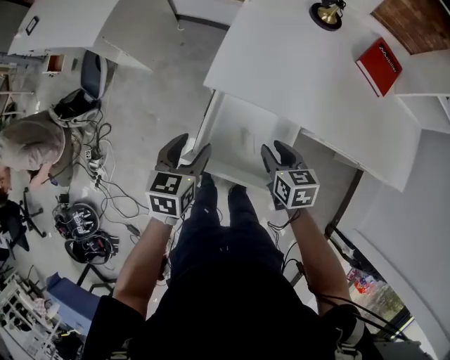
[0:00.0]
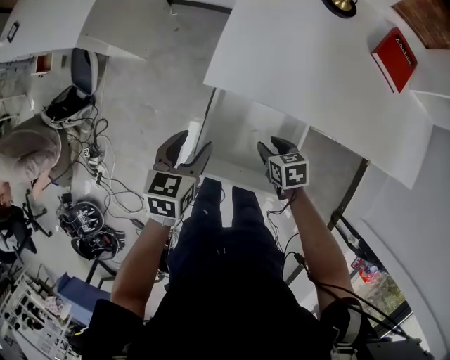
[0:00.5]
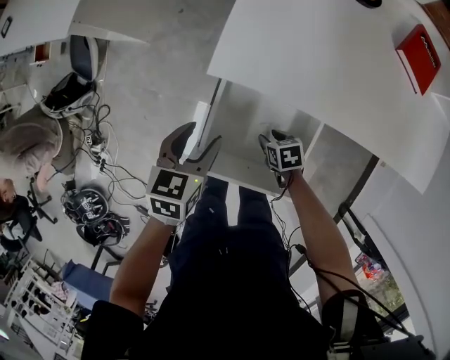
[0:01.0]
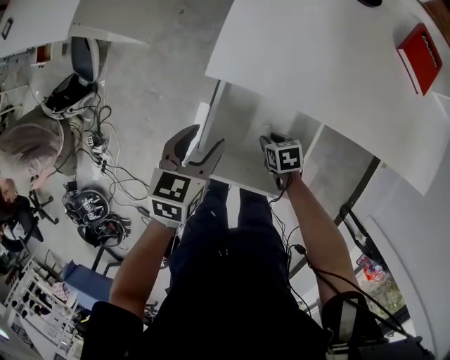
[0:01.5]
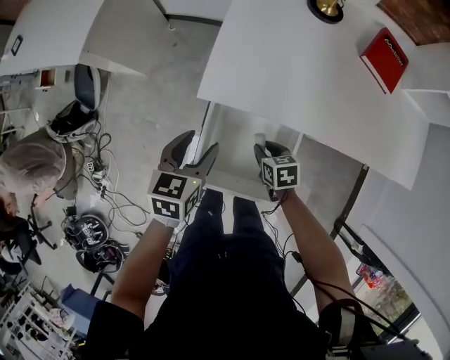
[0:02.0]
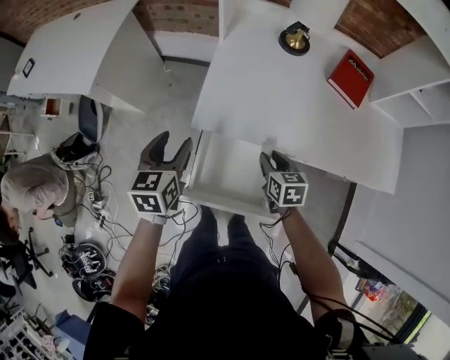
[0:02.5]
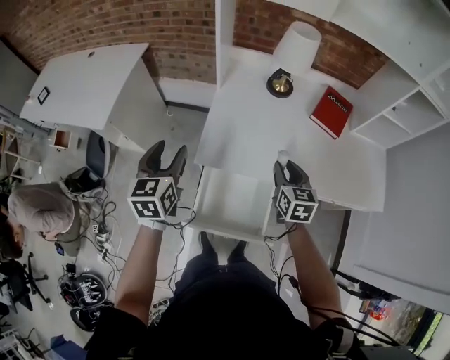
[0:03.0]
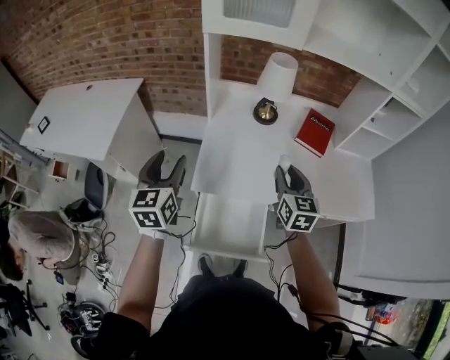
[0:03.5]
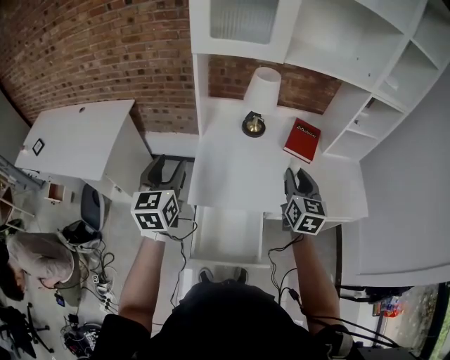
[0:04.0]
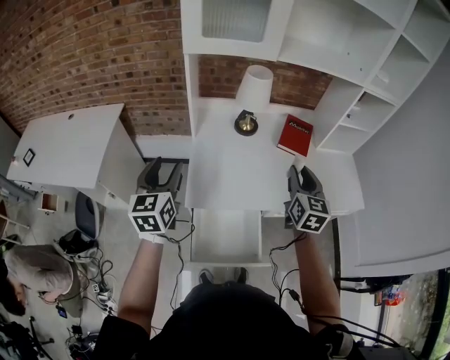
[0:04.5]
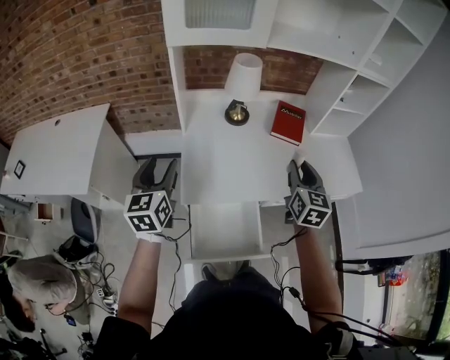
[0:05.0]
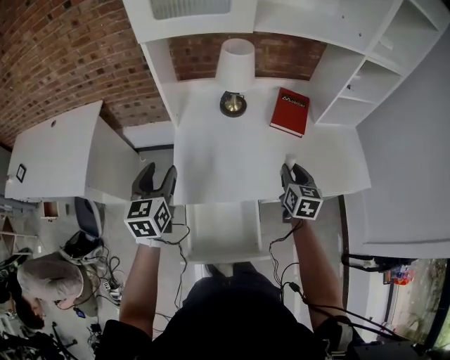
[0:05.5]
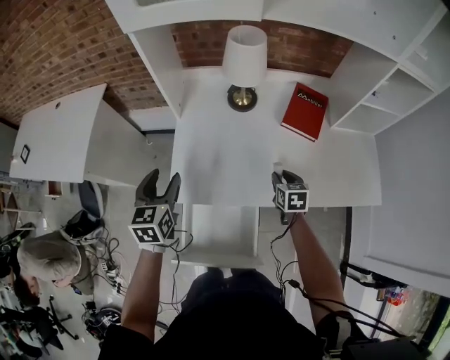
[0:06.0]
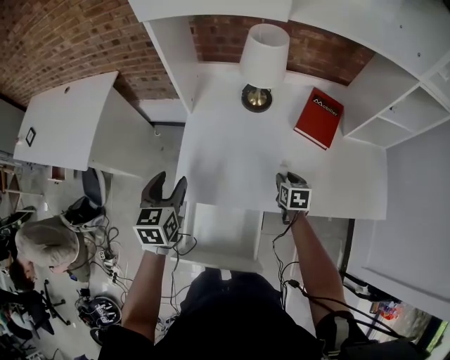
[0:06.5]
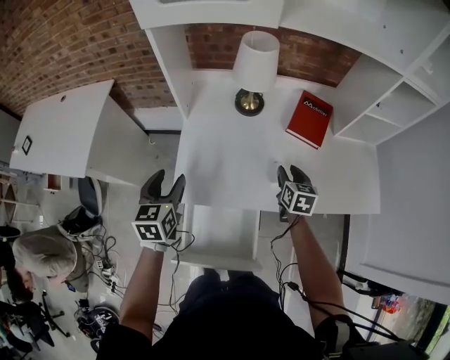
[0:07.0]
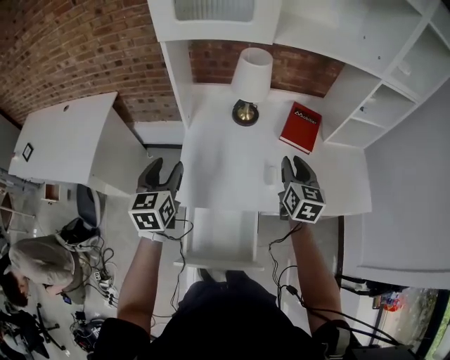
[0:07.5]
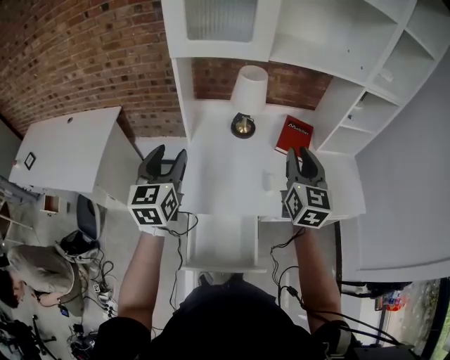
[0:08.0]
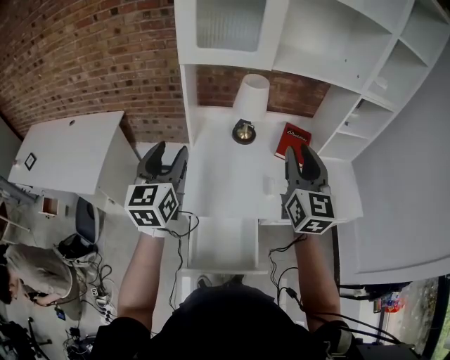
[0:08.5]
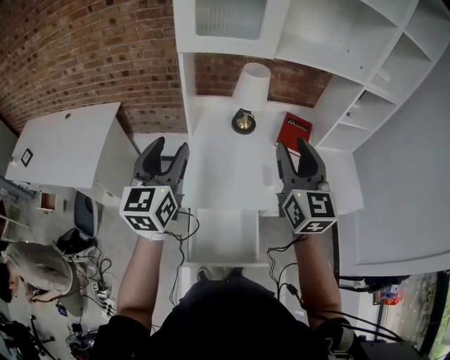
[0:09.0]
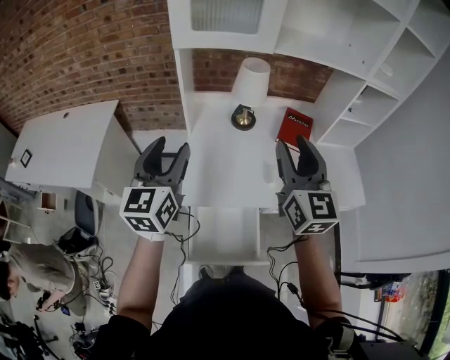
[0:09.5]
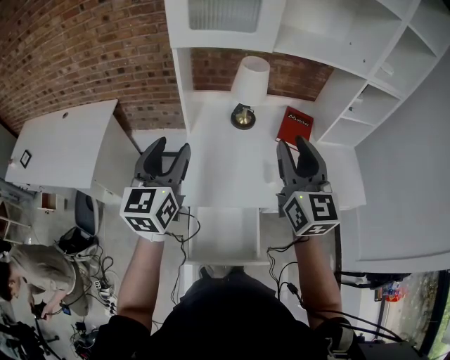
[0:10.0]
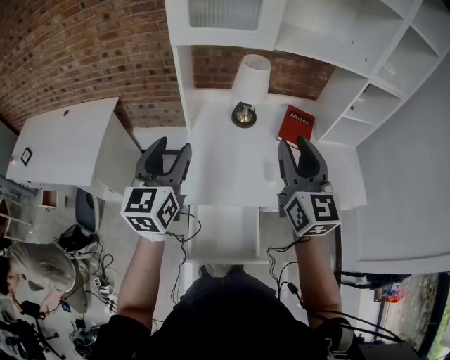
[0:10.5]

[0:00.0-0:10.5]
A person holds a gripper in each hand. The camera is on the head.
0:00.0 to 0:02.0: The right gripper shifts roughly 15 cm downward. Meanwhile the left gripper goes approximately 5 cm forward, and goes downward and returns, roughly 10 cm each way.
0:02.0 to 0:04.0: The grippers both shift upward by about 40 cm. The left gripper points its fingers some 30 degrees further upward, while the right gripper tips its fingers upward by about 40 degrees.
0:04.0 to 0:06.5: The right gripper travels downward by about 30 cm, and angles its fingers downward, by some 40 degrees, while the left gripper moves downward, roughly 20 cm, and turns by roughly 20 degrees.
0:06.5 to 0:08.5: The left gripper goes roughly 25 cm upward, and swivels some 30 degrees; the right gripper is displaced upward by roughly 50 cm, and tips its fingers upward by roughly 50 degrees.
0:08.5 to 0:10.5: The grippers move only a little.

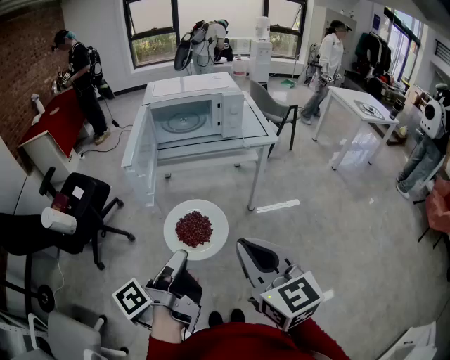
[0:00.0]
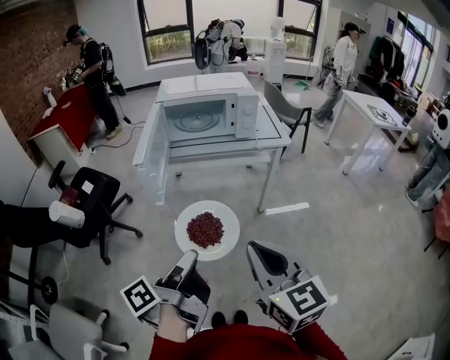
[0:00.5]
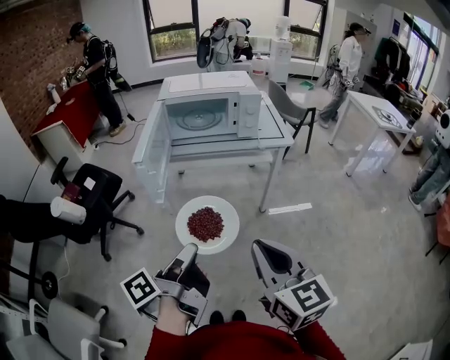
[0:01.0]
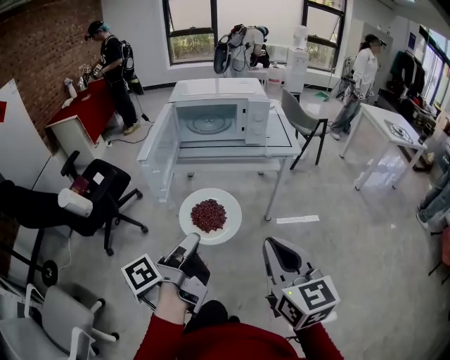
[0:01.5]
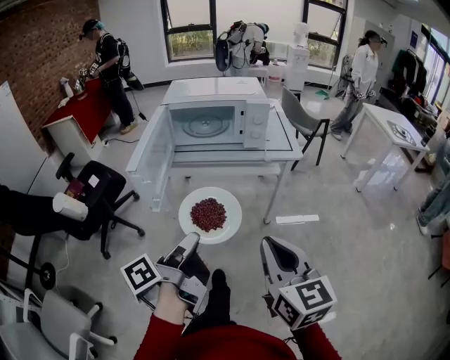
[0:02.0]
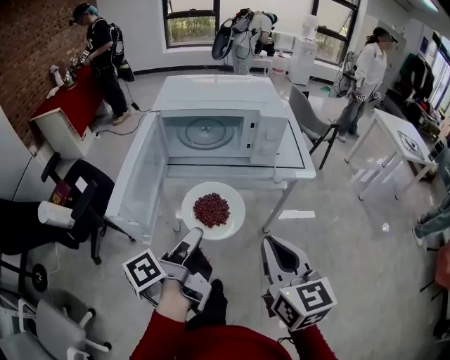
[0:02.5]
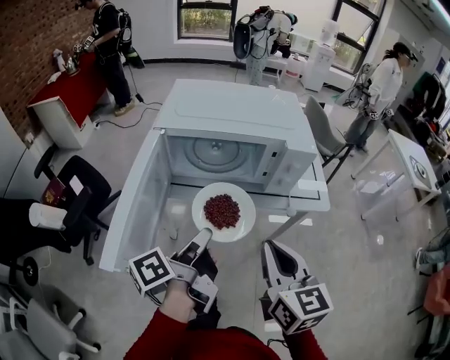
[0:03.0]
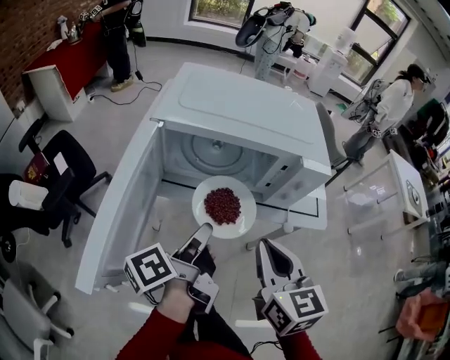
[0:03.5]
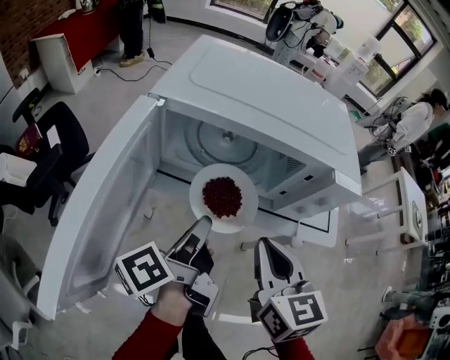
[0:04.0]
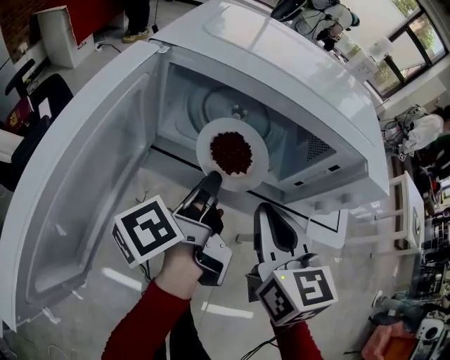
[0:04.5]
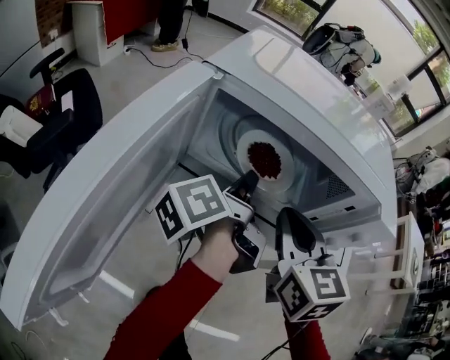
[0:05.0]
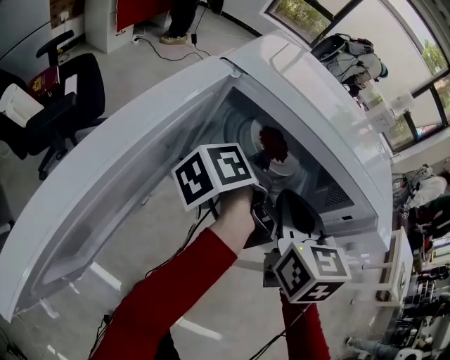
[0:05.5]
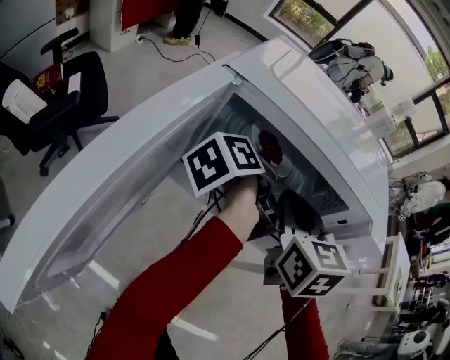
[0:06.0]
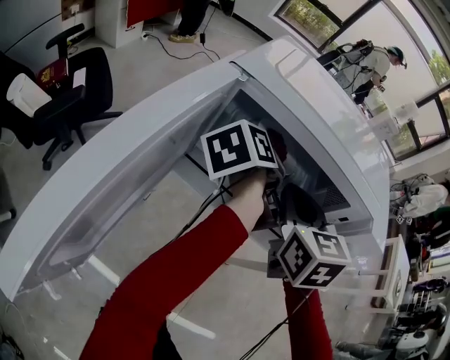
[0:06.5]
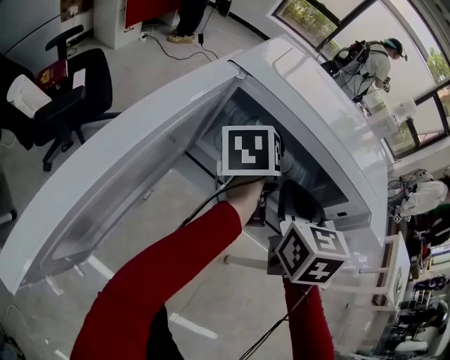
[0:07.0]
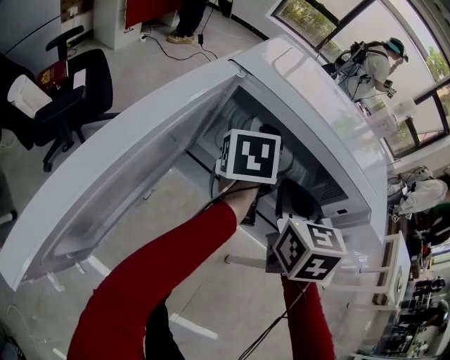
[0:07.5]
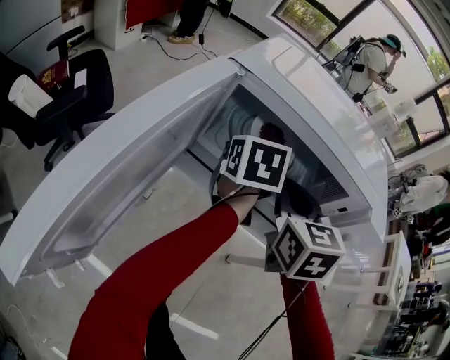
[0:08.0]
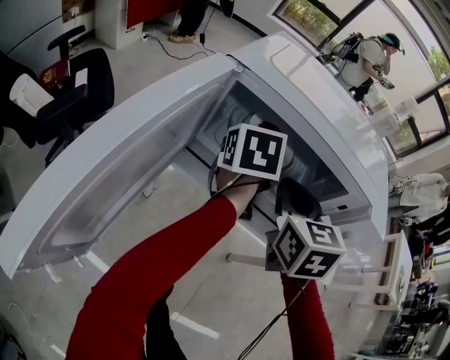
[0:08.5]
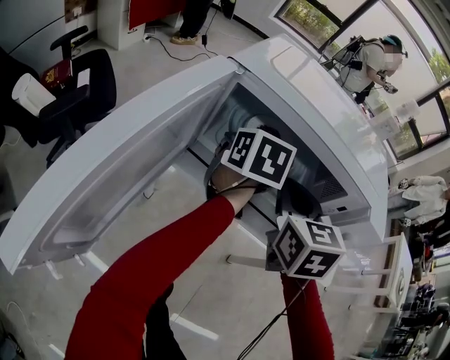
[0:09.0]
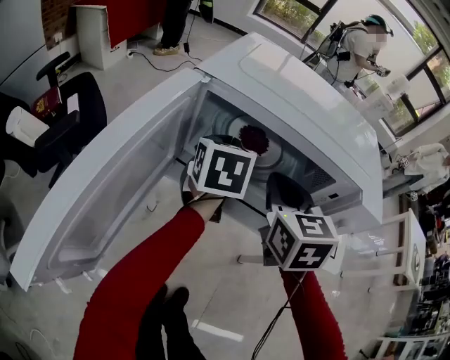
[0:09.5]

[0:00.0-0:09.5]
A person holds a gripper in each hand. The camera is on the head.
0:00.0 to 0:02.0: The left gripper travels forward by approximately 10 cm. Meanwhile the right gripper travels to the right and forward by some 10 cm.
0:02.0 to 0:04.0: Both grippers move forward, about 35 cm.
0:04.0 to 0:05.5: The two grippers go about 15 cm forward.
0:05.5 to 0:07.5: The left gripper twists about 40 degrees clockwise, seen from behind.
0:07.5 to 0:09.5: The left gripper swivels approximately 20 degrees.

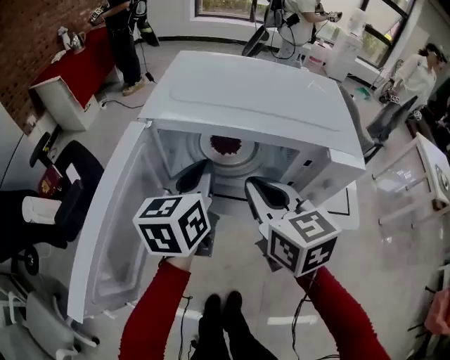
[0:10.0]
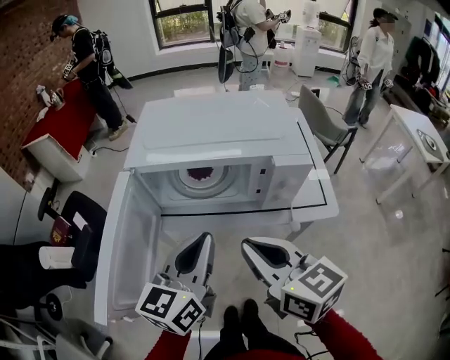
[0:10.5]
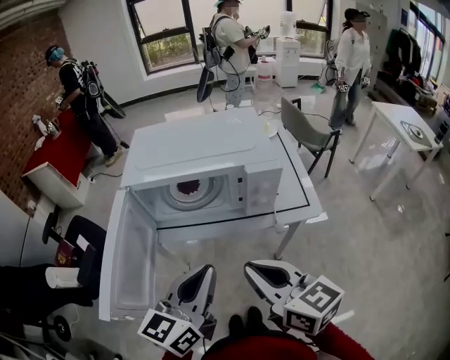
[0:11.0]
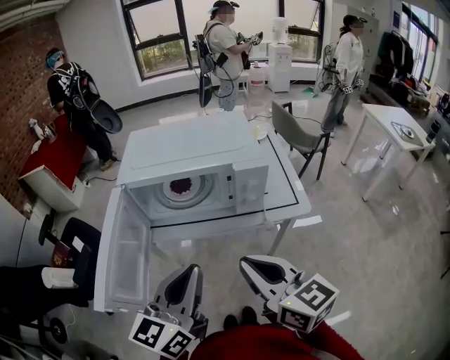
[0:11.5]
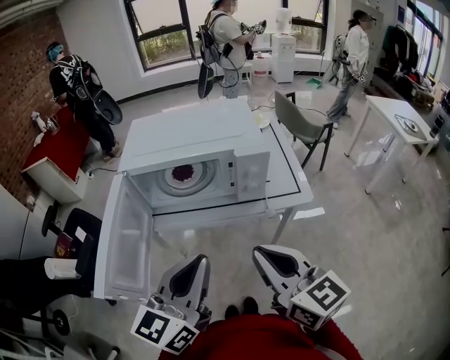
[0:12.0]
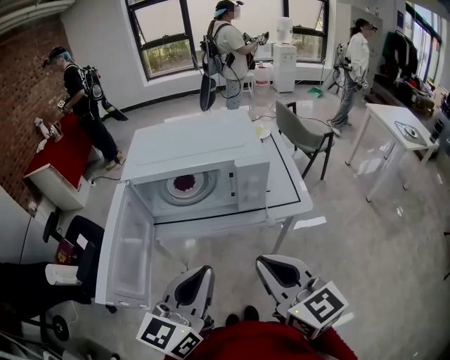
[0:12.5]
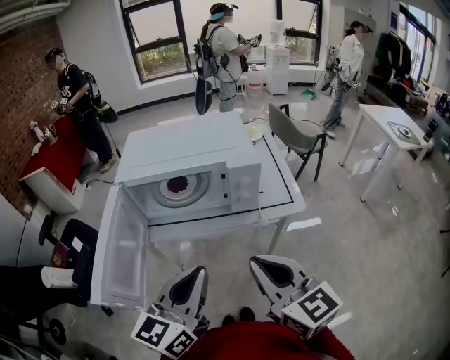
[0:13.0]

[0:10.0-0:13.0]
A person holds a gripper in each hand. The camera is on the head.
0:10.0 to 0:11.5: The left gripper travels backward by roughly 25 cm, and swivels some 20 degrees; the right gripper travels backward and to the right by some 20 cm, and swivels about 20 degrees.
0:11.5 to 0:13.0: The grippers stay close to where they were, moving slightly.

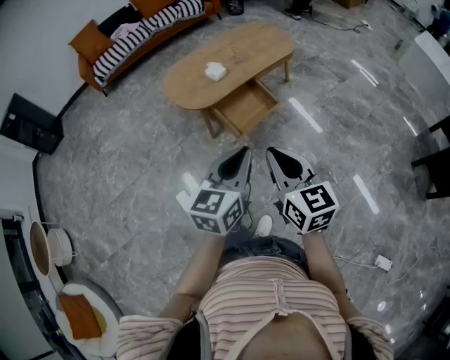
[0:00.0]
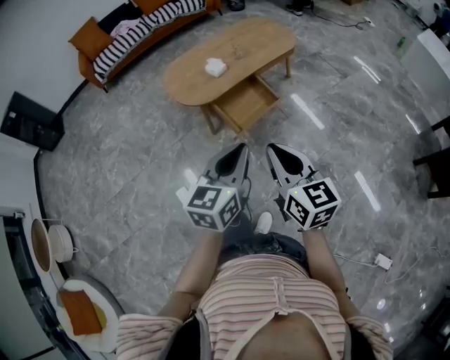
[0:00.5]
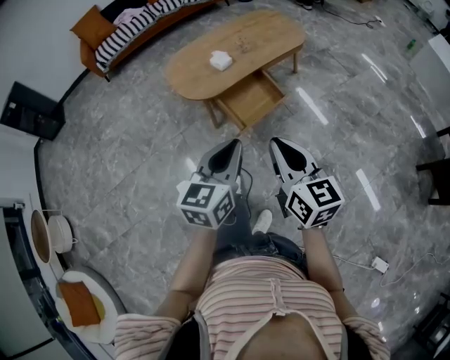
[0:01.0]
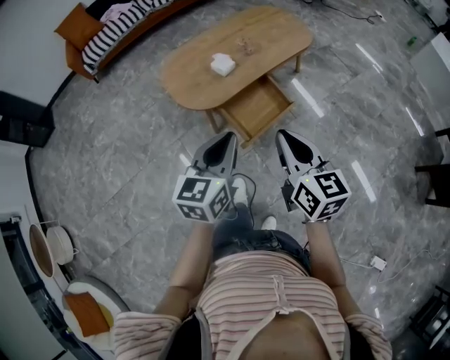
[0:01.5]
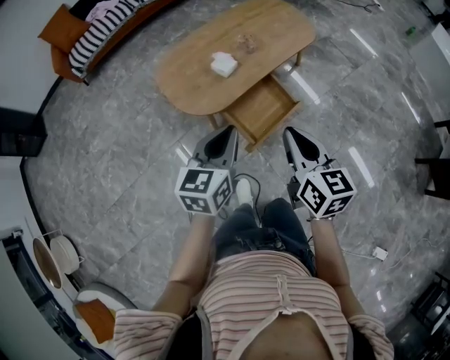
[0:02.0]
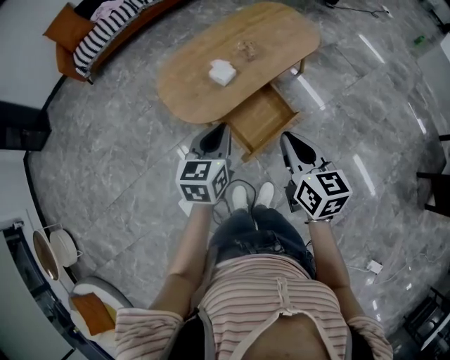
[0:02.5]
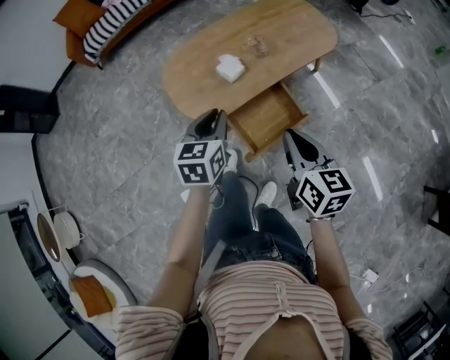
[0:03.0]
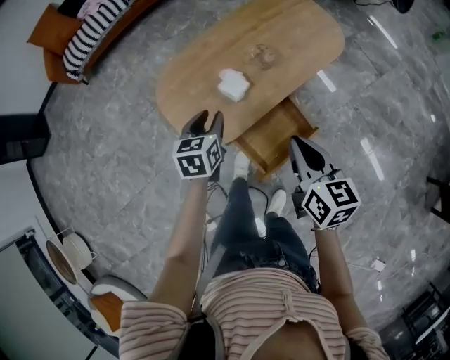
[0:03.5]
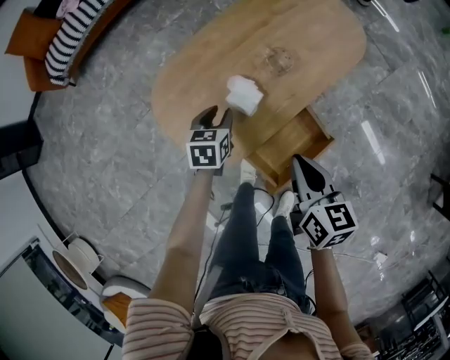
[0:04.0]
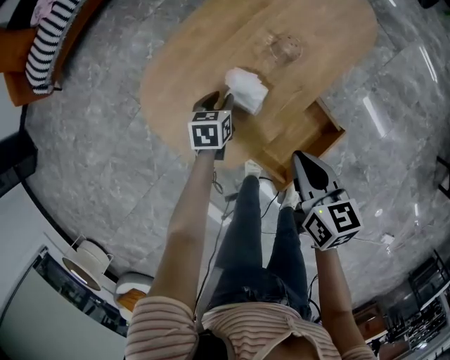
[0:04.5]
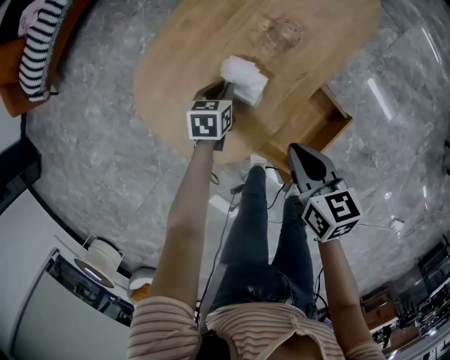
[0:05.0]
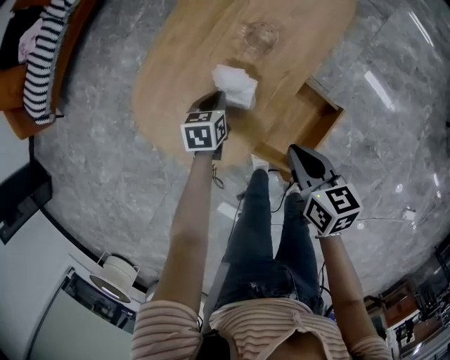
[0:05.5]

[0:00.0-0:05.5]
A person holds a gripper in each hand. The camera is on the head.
0:00.0 to 0:02.0: The left gripper moves forward and to the left, about 30 cm; the right gripper heads forward, covering roughly 25 cm.
0:02.0 to 0:03.5: The left gripper moves forward and downward, about 30 cm, turns by some 20 degrees, and opens. Meanwhile the right gripper heads forward, covering about 20 cm.
0:03.5 to 0:05.5: Both grippers move downward and forward, approximately 20 cm. The left gripper swivels roughly 20 degrees, and closes its fingers; the right gripper rotates about 20 degrees.
